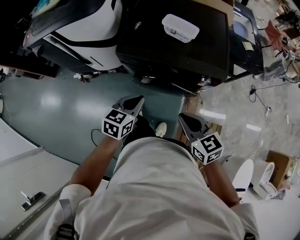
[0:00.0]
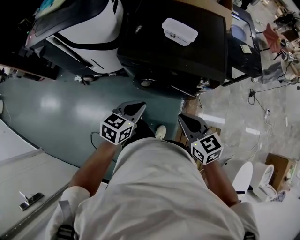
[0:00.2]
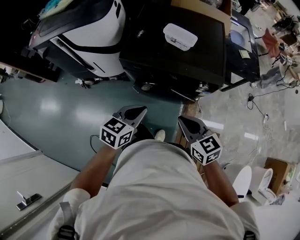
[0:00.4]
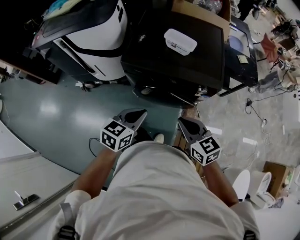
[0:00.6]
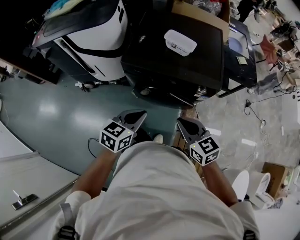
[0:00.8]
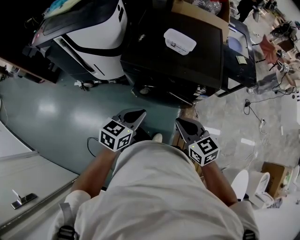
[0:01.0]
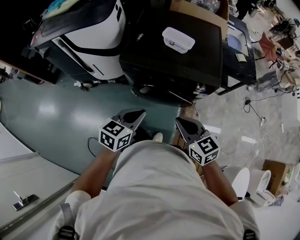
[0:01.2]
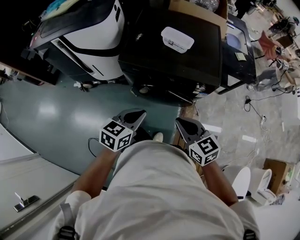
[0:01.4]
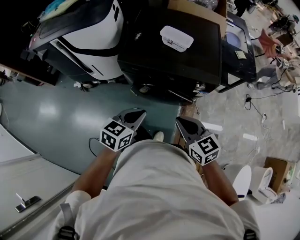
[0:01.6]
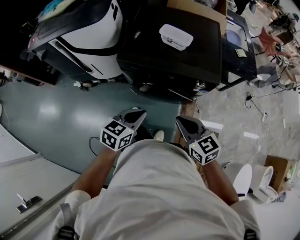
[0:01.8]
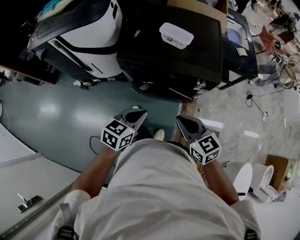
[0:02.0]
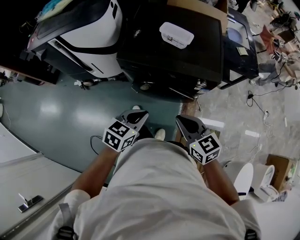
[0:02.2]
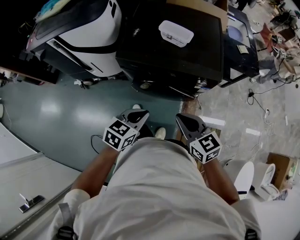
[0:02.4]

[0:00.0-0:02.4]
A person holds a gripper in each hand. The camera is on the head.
0:00.0 to 0:01.2: The left gripper heads backward, covering some 5 cm.
0:01.2 to 0:02.4: The grippers move only a little.

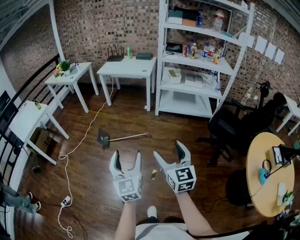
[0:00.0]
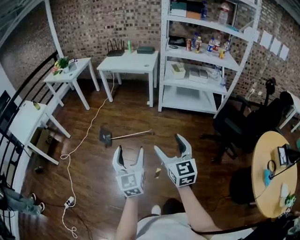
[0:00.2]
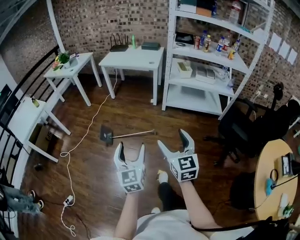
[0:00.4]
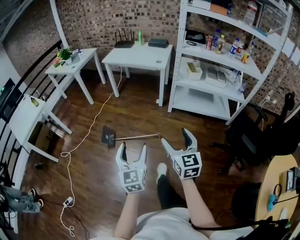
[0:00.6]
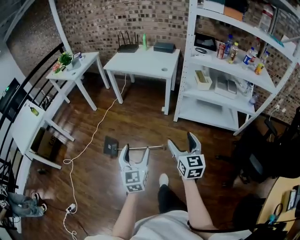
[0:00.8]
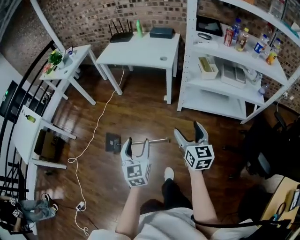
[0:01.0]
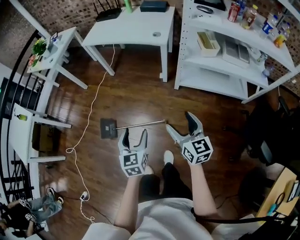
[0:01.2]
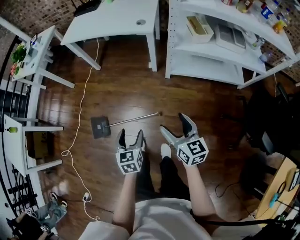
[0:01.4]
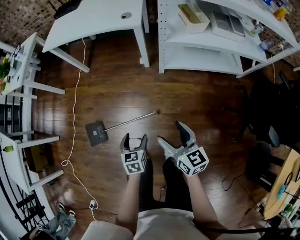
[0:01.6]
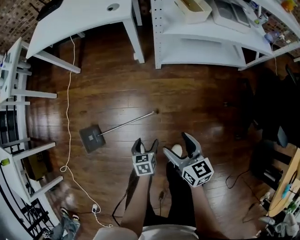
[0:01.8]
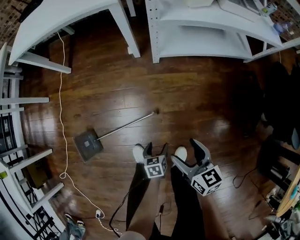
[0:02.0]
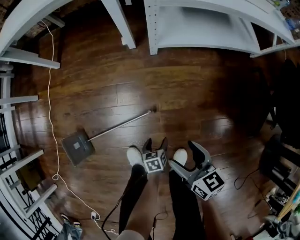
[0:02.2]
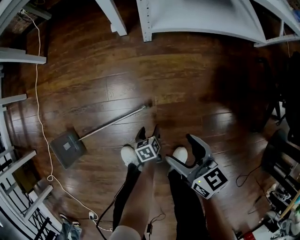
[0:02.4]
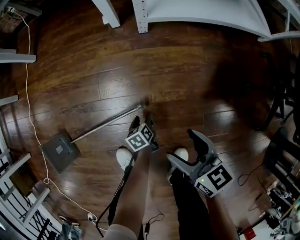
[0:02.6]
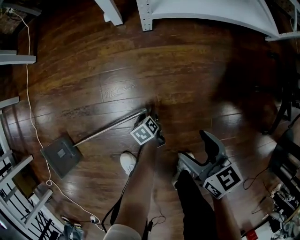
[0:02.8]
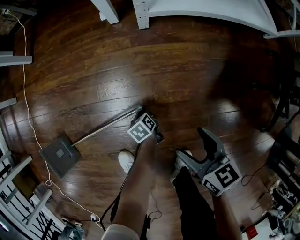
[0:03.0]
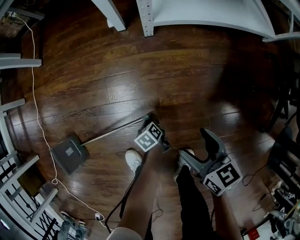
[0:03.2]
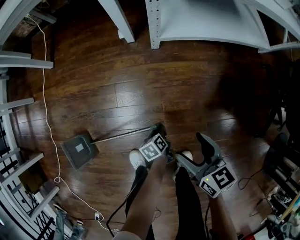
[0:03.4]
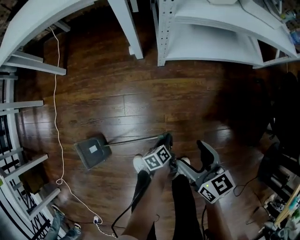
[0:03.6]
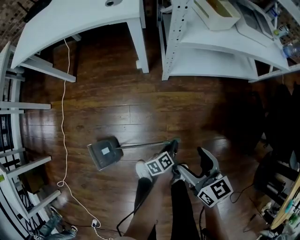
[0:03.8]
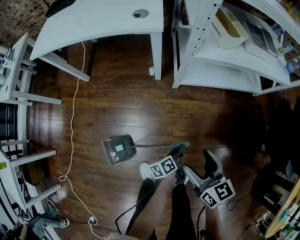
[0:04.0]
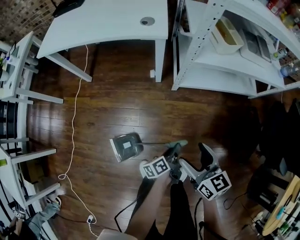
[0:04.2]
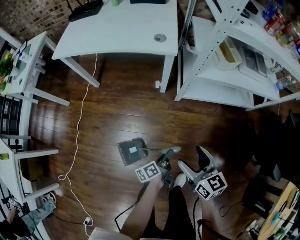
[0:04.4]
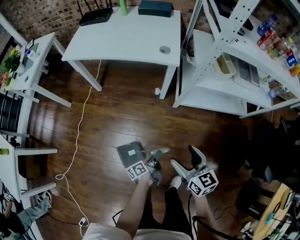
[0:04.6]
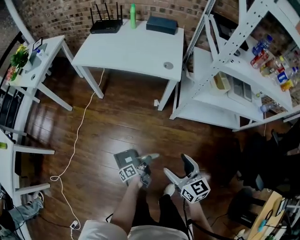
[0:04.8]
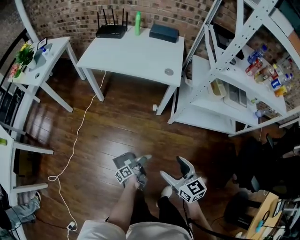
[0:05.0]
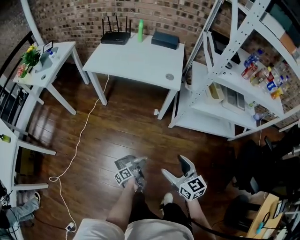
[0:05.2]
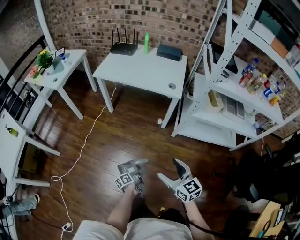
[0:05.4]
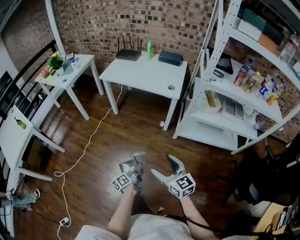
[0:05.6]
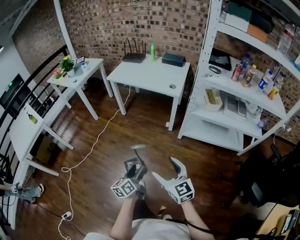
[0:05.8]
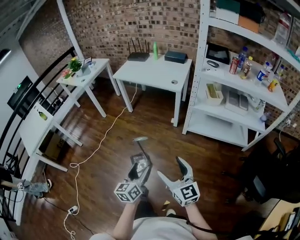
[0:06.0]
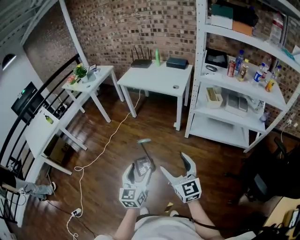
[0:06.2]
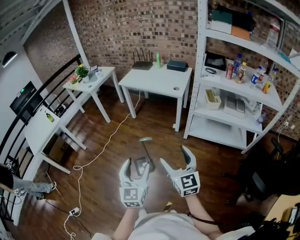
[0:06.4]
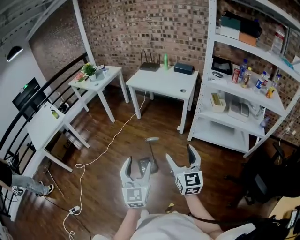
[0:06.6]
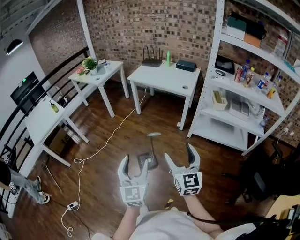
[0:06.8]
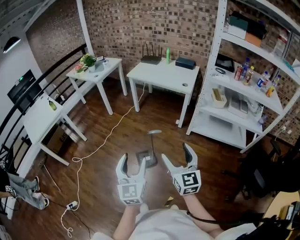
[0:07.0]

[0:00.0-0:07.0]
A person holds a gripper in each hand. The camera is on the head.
0:00.0 to 0:01.4: The pair of grippers is taken forward, about 60 cm. Both grippers move downward, roughly 30 cm. The left gripper angles its fingers downward, by approximately 40 degrees, while the right gripper rotates approximately 20 degrees.
0:01.4 to 0:02.8: Both grippers move downward, approximately 60 cm. The left gripper swivels approximately 40 degrees, while the right gripper turns by roughly 20 degrees.
0:02.8 to 0:04.2: The two grippers go some 50 cm upward. The left gripper points its fingers roughly 40 degrees further upward, and closes up.
0:04.2 to 0:05.6: The right gripper heads upward, covering some 20 cm, and changes its angle by about 30 degrees, while the left gripper ends up some 35 cm from where it was, rotates about 30 degrees, and opens up.
0:05.6 to 0:07.0: The right gripper is displaced backward and upward by some 25 cm. The left gripper goes approximately 40 cm upward and backward, and rolls clockwise, seen from behind, by approximately 80 degrees.

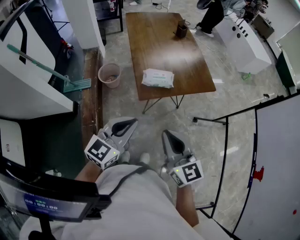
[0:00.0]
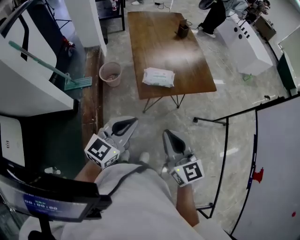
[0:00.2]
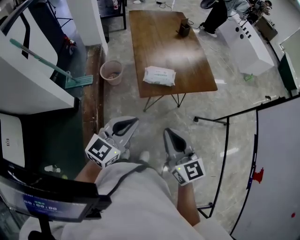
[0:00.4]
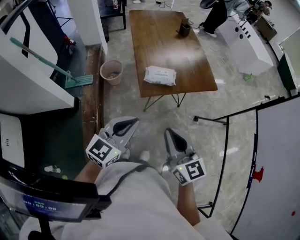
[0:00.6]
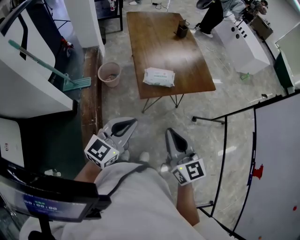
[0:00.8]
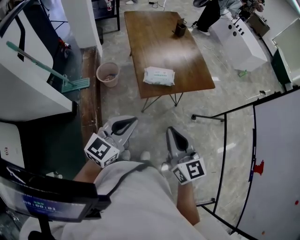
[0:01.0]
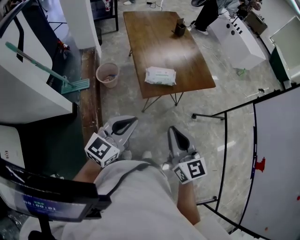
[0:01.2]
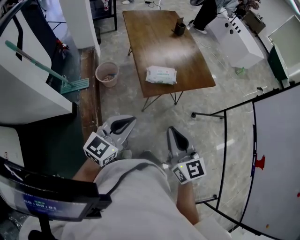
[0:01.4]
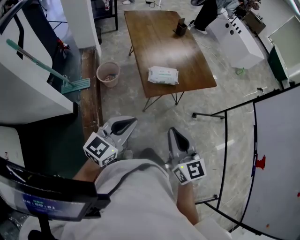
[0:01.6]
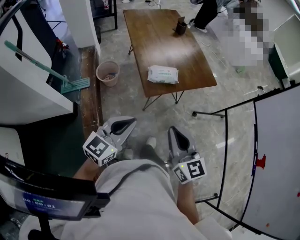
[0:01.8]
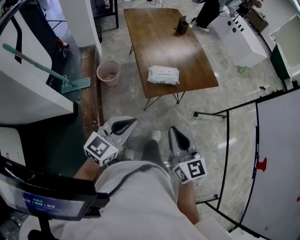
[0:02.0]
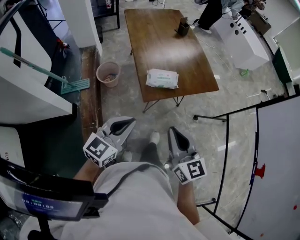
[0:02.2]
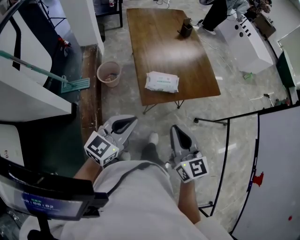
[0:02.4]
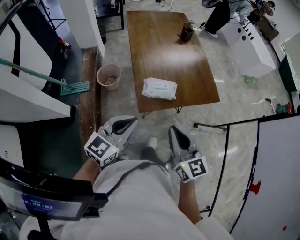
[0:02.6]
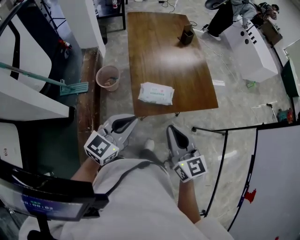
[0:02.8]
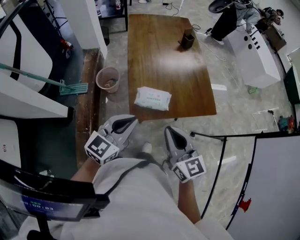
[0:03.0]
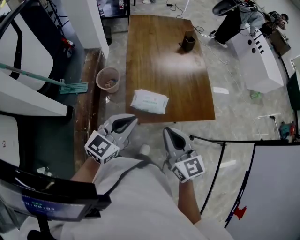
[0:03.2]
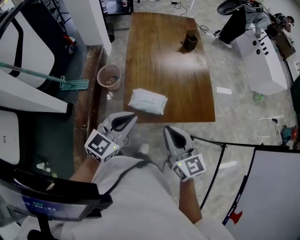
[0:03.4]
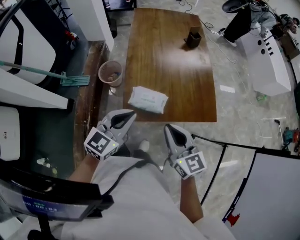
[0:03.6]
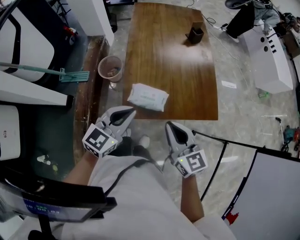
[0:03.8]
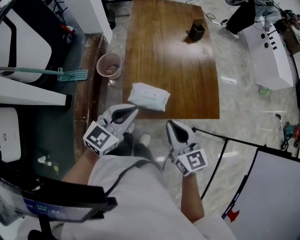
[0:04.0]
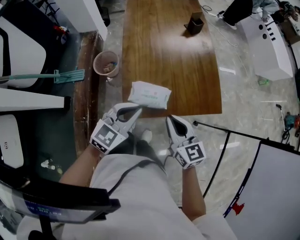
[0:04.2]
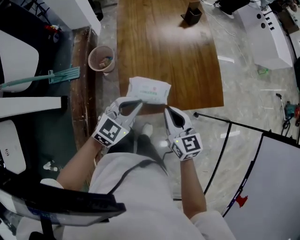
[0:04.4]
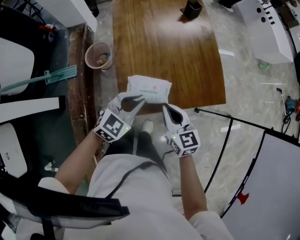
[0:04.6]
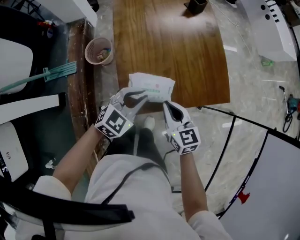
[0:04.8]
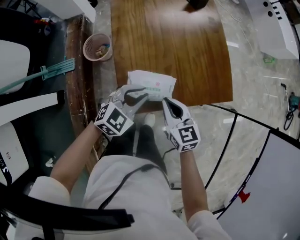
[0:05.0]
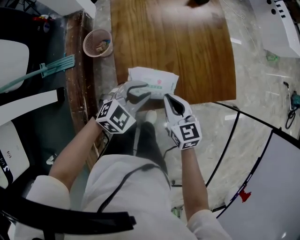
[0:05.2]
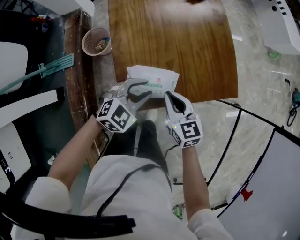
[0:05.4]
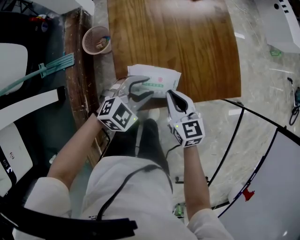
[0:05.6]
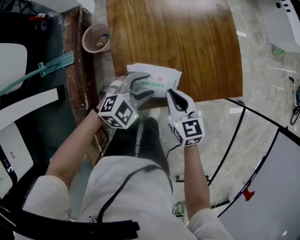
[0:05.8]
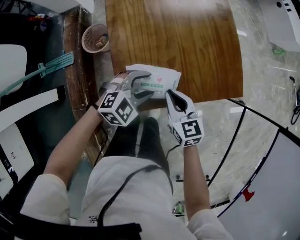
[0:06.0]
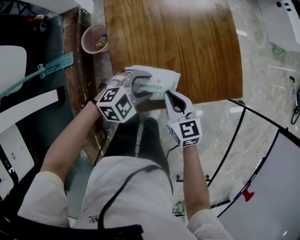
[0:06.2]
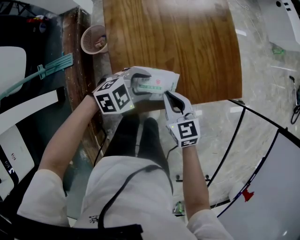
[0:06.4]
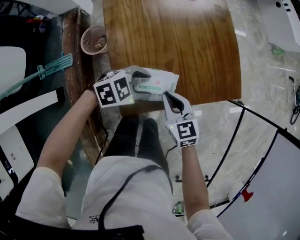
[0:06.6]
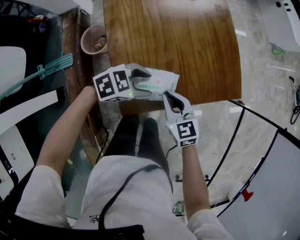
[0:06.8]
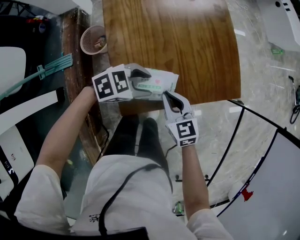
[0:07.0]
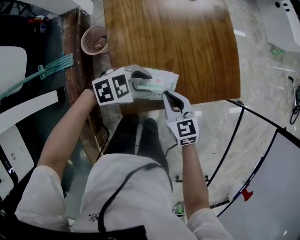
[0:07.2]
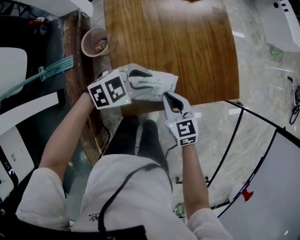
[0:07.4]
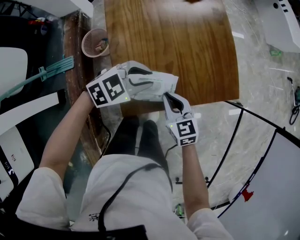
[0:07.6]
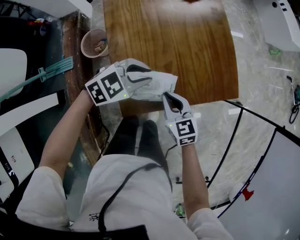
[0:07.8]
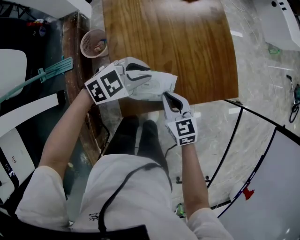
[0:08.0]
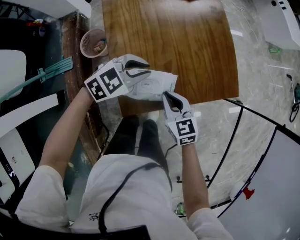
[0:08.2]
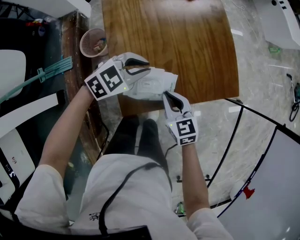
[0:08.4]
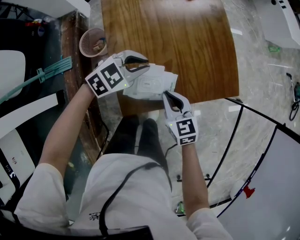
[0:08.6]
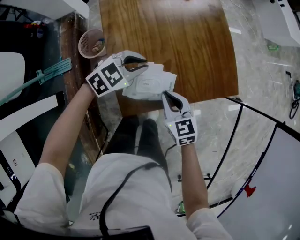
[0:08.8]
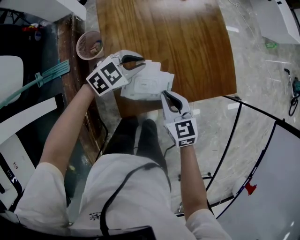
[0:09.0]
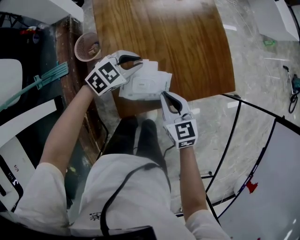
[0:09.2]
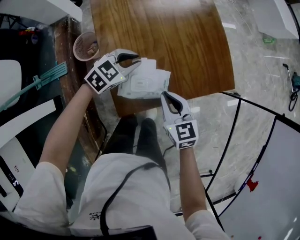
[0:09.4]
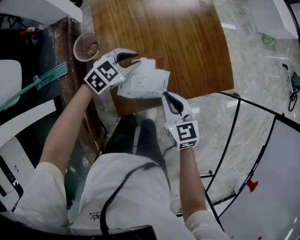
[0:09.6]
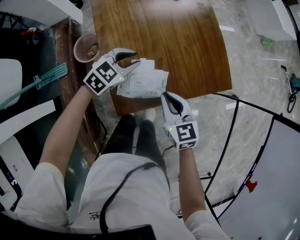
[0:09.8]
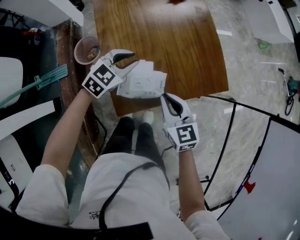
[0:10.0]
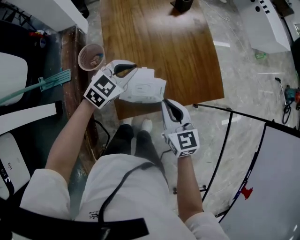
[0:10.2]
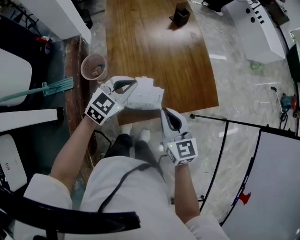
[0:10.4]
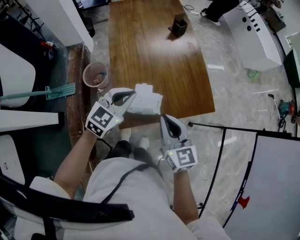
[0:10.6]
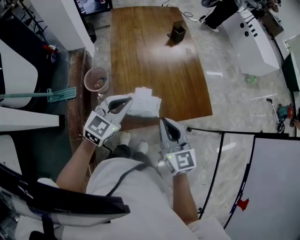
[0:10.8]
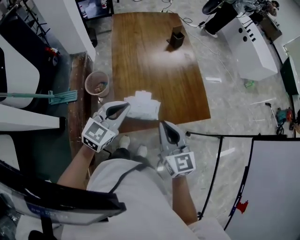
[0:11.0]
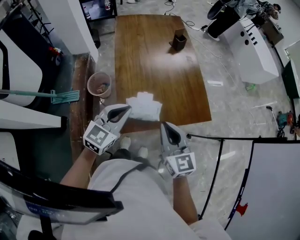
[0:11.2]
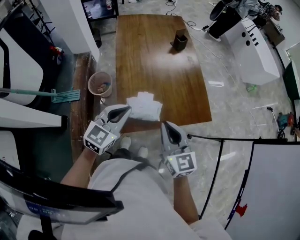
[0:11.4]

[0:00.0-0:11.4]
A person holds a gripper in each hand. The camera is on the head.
0:00.0 to 0:01.4: The left gripper heads to the left, covering some 5 cm.
0:01.4 to 0:02.8: The two grippers go approximately 15 cm forward.
0:02.8 to 0:04.2: Both grippers travel together forward, downward and to the right, about 15 cm.
0:04.2 to 0:05.6: The left gripper goes about 15 cm downward, changes its angle by approximately 30 degrees, and opens, while the right gripper is displaced downward and forward by approximately 15 cm.
0:05.6 to 0:07.2: The left gripper turns by roughly 30 degrees.
0:07.2 to 0:08.6: The left gripper moves approximately 10 cm, and closes up.
0:08.6 to 0:10.0: The right gripper goes approximately 5 cm upward.
0:10.0 to 0:11.4: The right gripper travels upward by approximately 15 cm, while the left gripper heads upward and backward, covering about 25 cm, rotates approximately 30 degrees, and closes up.

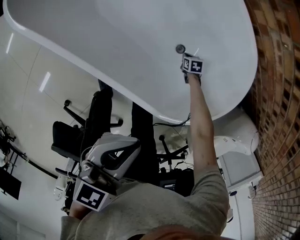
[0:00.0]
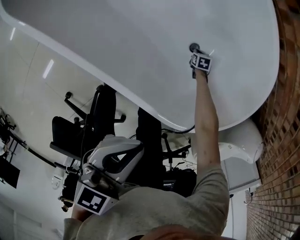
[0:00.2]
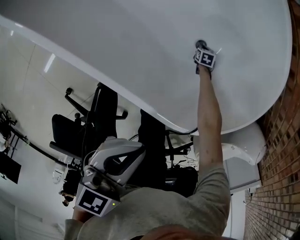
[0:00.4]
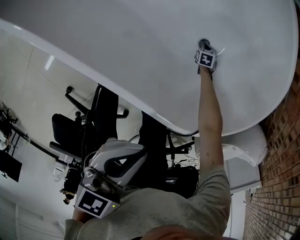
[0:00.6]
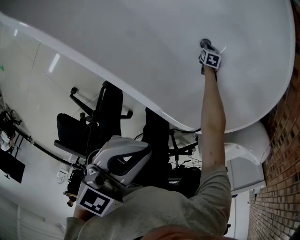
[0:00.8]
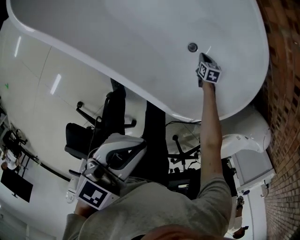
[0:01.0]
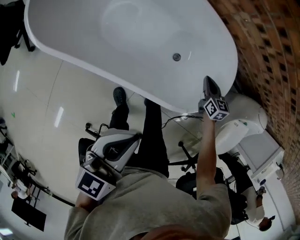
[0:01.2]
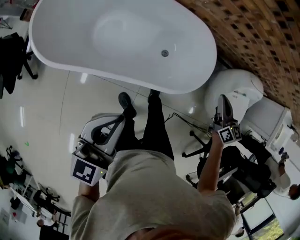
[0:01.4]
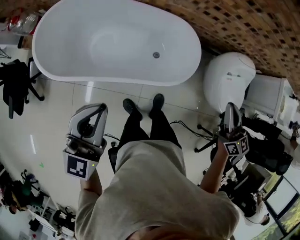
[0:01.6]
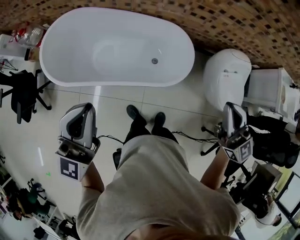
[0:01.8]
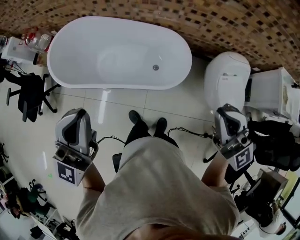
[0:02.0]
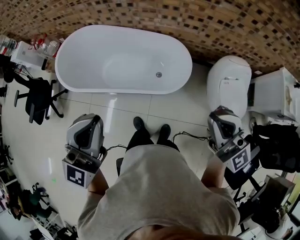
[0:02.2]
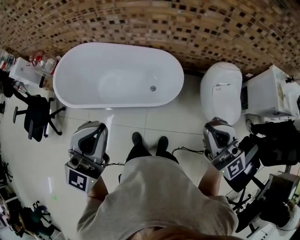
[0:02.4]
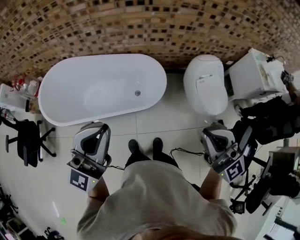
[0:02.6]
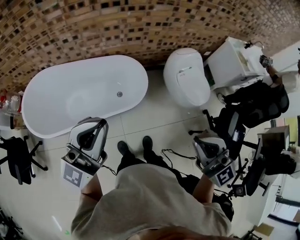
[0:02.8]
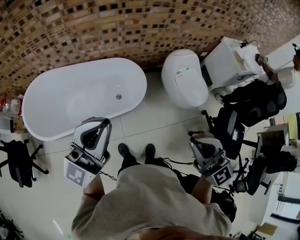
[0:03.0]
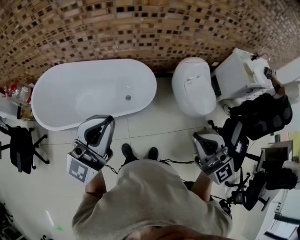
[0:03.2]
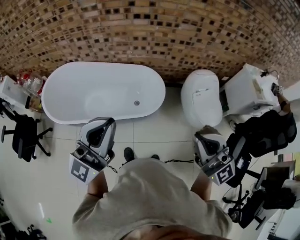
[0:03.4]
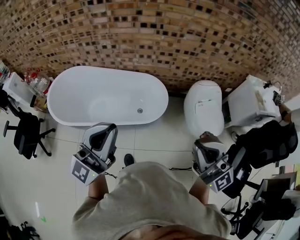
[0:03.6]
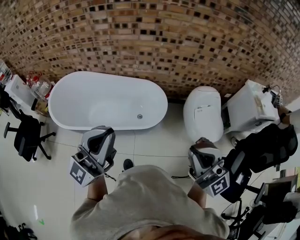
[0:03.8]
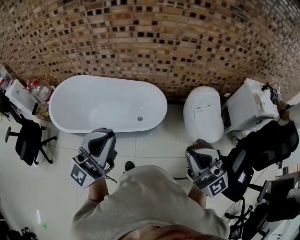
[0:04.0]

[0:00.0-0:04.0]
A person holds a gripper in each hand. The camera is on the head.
0:00.0 to 0:01.4: The right gripper is displaced upward by approximately 70 cm, and angles its fingers upward, by some 50 degrees. The left gripper moves upward, roughly 20 cm, and turns by some 30 degrees.
0:01.4 to 0:02.6: The right gripper goes some 50 cm upward and backward, and points its fingers roughly 40 degrees further upward, while the left gripper shifts approximately 35 cm upward, backward and to the right, and swivels approximately 40 degrees.
0:02.6 to 0:04.0: Both grippers move backward, roughly 10 cm.
